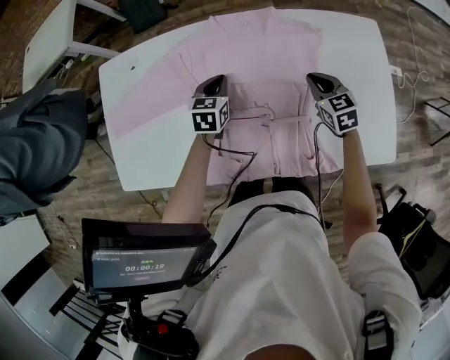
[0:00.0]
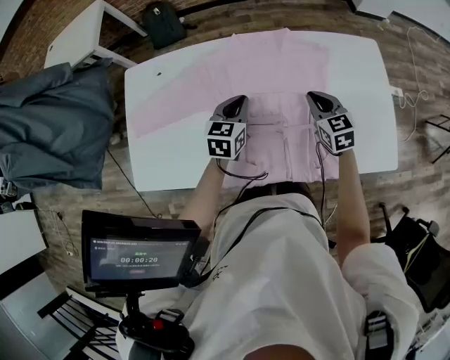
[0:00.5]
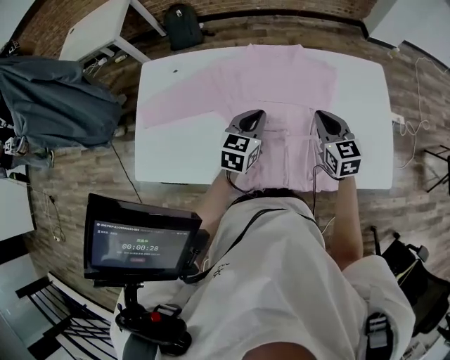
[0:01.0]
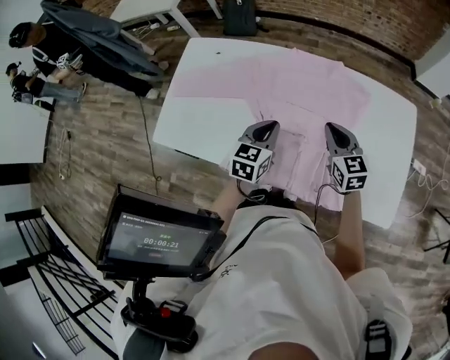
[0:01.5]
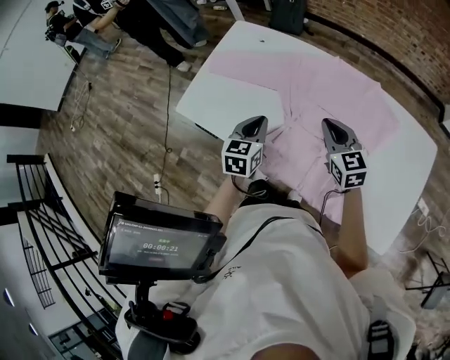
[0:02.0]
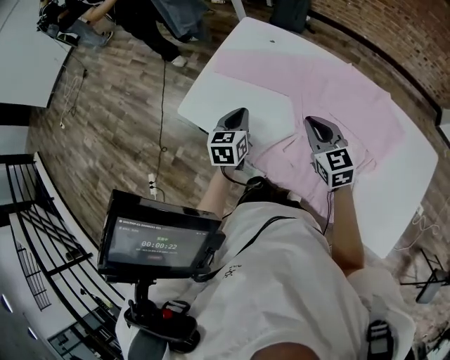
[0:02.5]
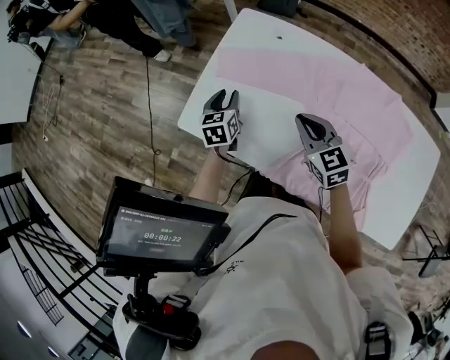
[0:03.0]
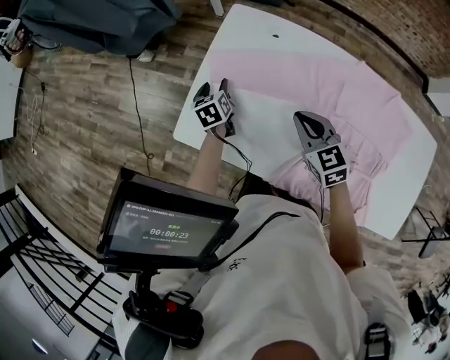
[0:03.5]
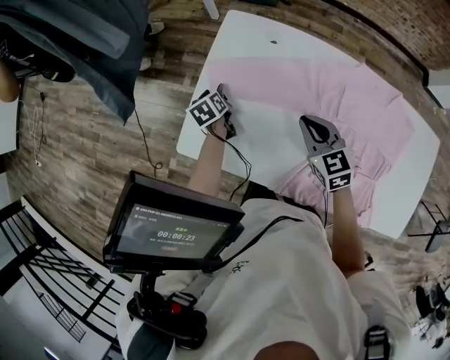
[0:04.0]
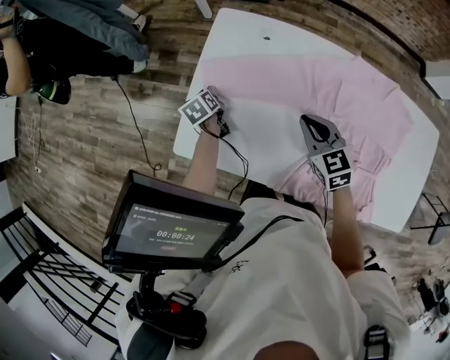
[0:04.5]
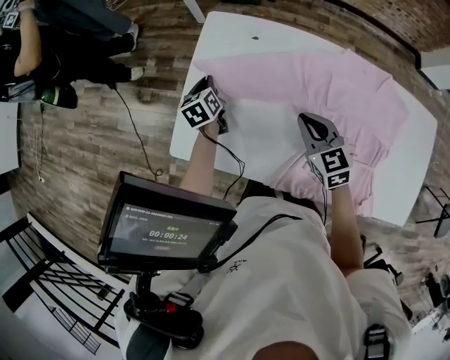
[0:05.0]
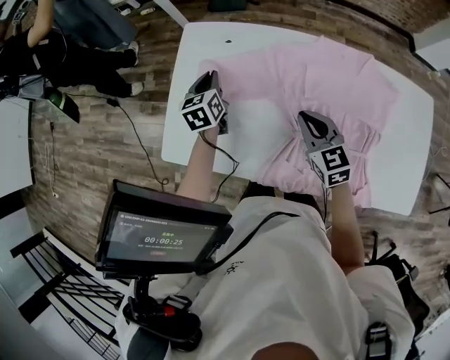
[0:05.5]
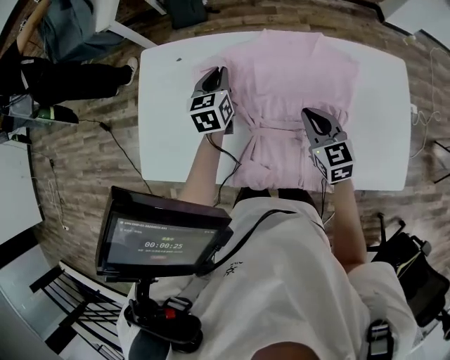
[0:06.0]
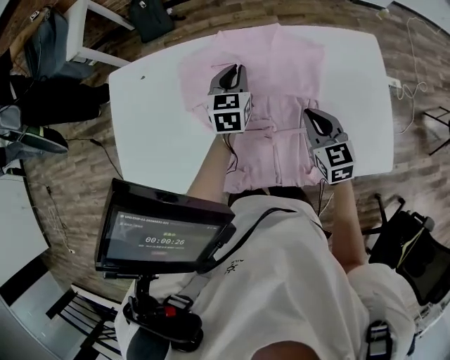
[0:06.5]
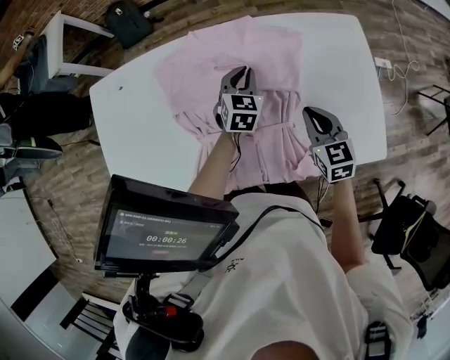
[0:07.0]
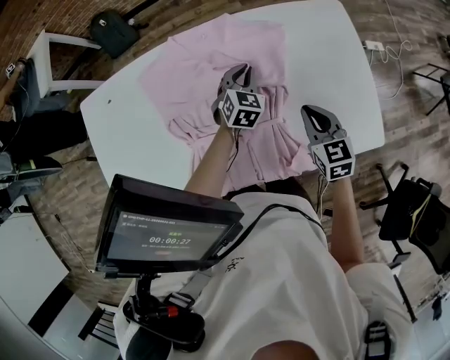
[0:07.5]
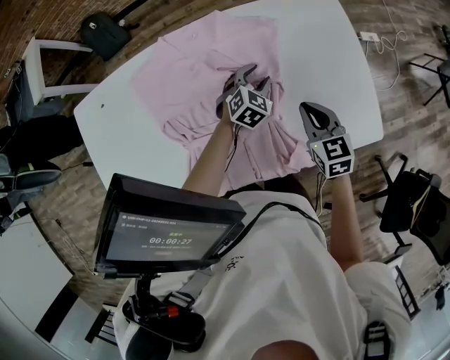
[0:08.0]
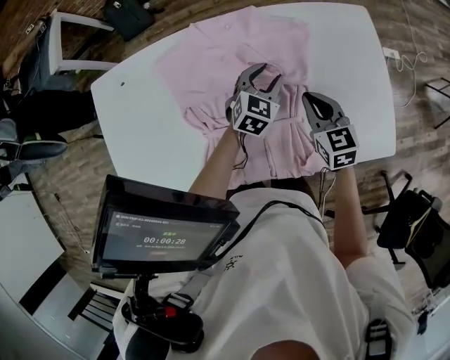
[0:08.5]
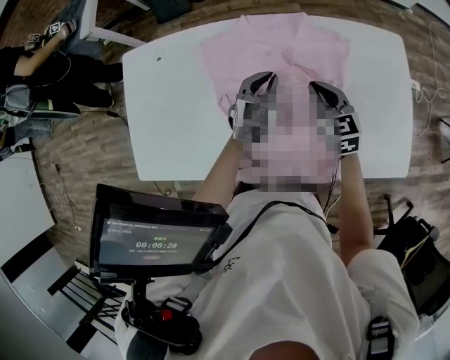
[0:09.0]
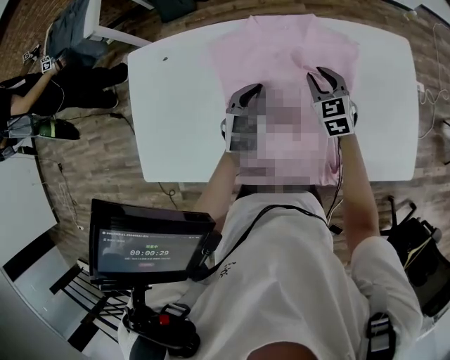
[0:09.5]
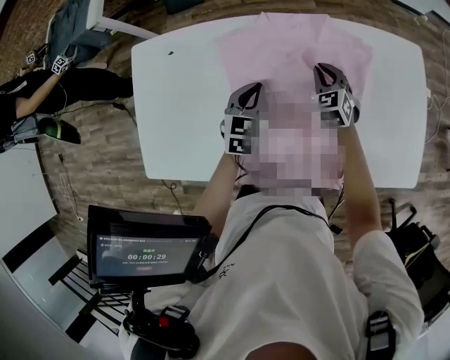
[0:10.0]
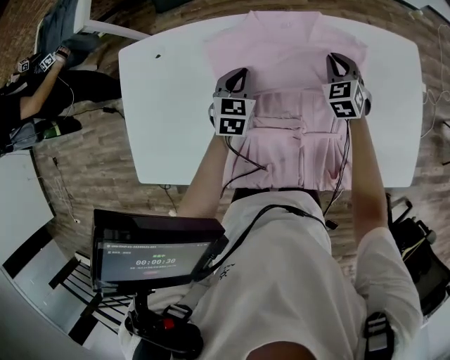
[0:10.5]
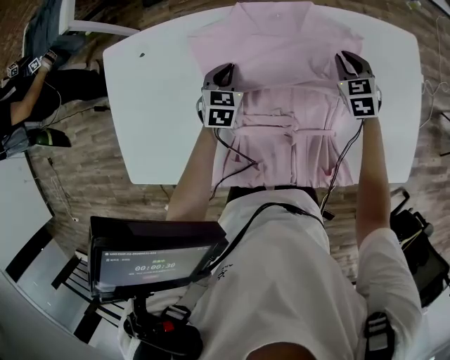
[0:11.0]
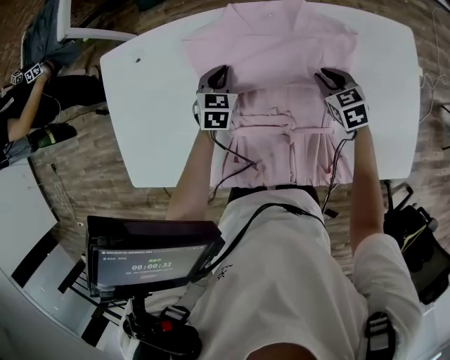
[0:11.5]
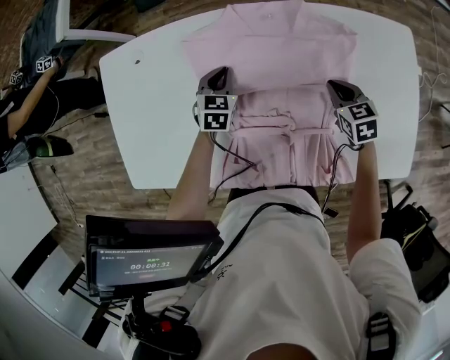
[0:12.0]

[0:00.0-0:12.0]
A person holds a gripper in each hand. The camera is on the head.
0:00.0 to 0:02.0: The right gripper shifts by roughly 25 cm, and rotates about 30 degrees, while the left gripper shifts by some 25 cm, and turns by about 30 degrees.
0:02.0 to 0:04.0: The right gripper shifts about 25 cm to the left and forward. Meanwhile the left gripper goes some 40 cm forward, to the left and downward, turns by about 40 degrees, and opens up.
0:04.0 to 0:06.0: The left gripper moves to the right and upward, about 40 cm, rotates some 50 degrees, and closes; the right gripper is displaced to the right and backward by roughly 25 cm, and turns by some 20 degrees.
0:06.0 to 0:08.0: The left gripper changes place by about 40 cm, changes its angle by roughly 60 degrees, and opens its fingers. The right gripper shifts by approximately 25 cm, and turns by approximately 20 degrees.
0:08.0 to 0:10.0: The left gripper is displaced to the left by about 30 cm, rotates approximately 40 degrees, and closes up. Meanwhile the right gripper travels to the left and forward by about 25 cm, and rotates some 30 degrees.
0:10.0 to 0:12.0: The right gripper goes approximately 15 cm to the right and backward, and turns by some 30 degrees. Meanwhile the left gripper is displaced downward by roughly 5 cm.

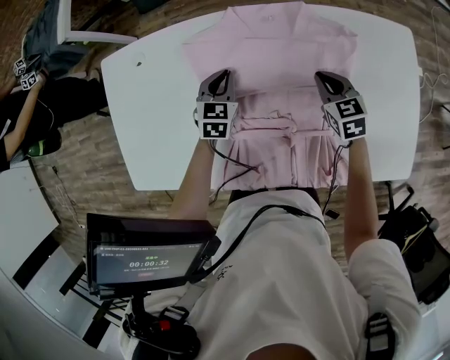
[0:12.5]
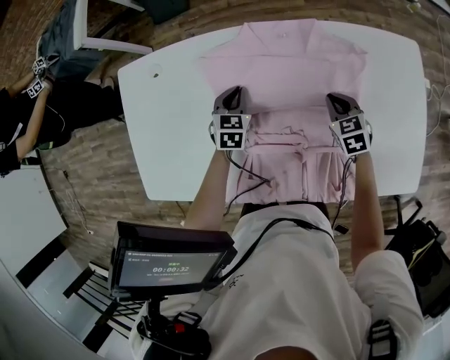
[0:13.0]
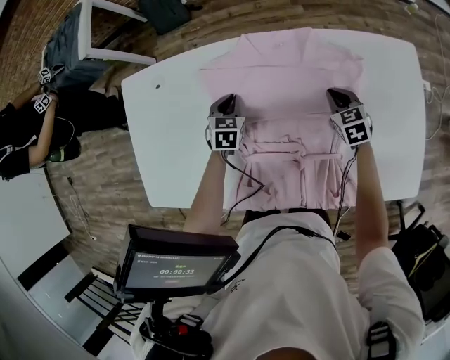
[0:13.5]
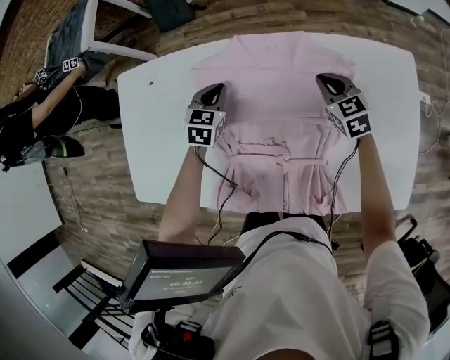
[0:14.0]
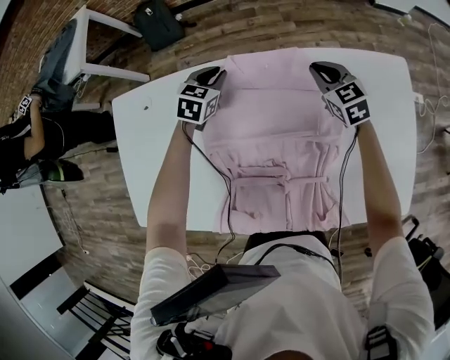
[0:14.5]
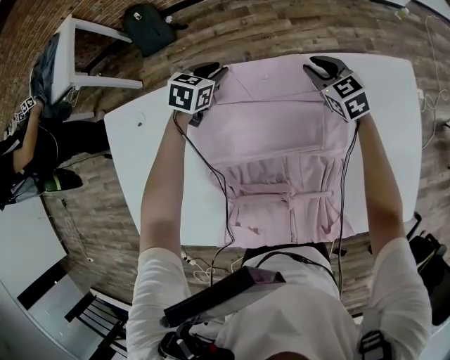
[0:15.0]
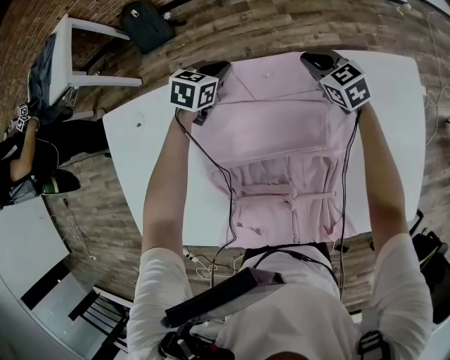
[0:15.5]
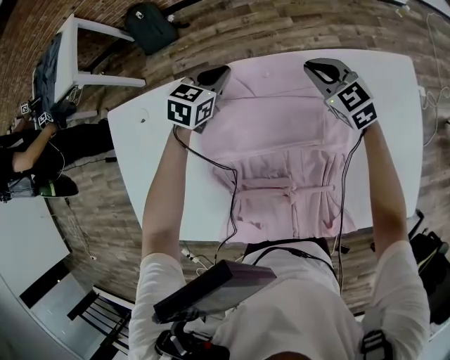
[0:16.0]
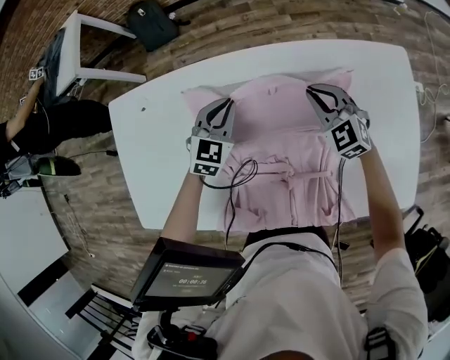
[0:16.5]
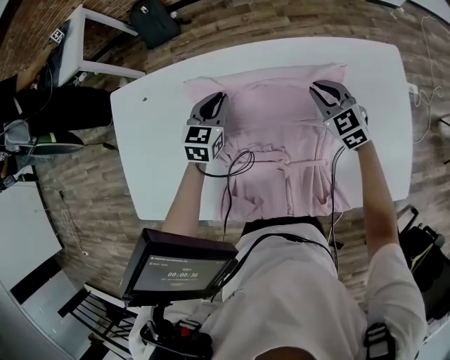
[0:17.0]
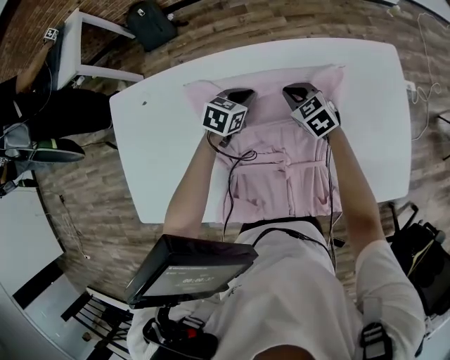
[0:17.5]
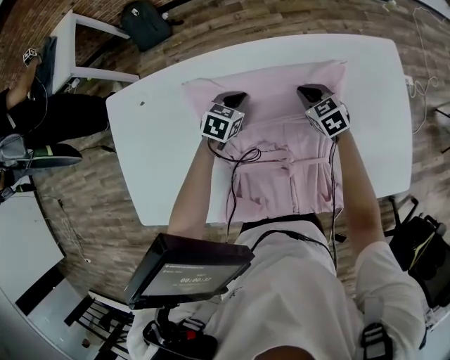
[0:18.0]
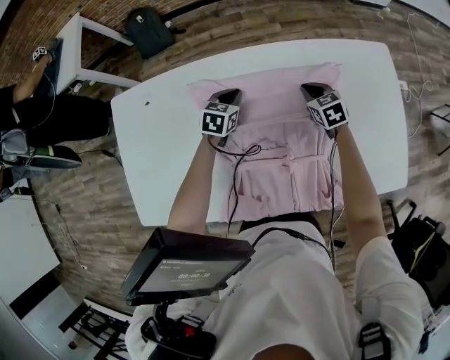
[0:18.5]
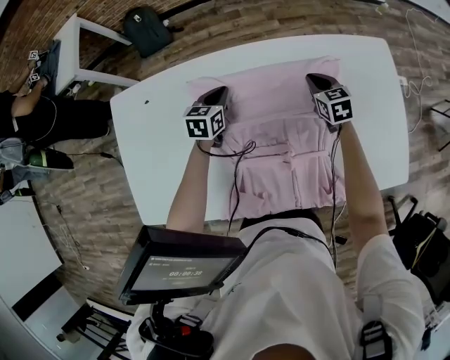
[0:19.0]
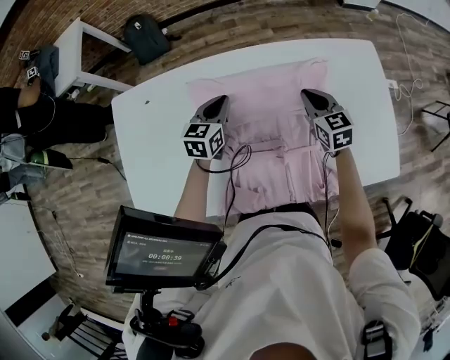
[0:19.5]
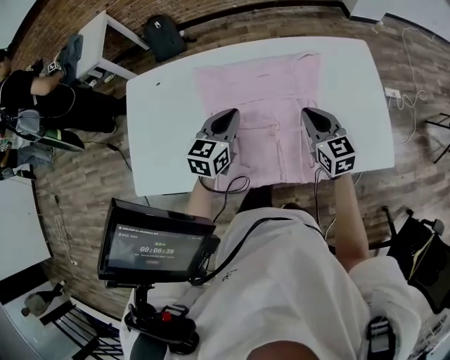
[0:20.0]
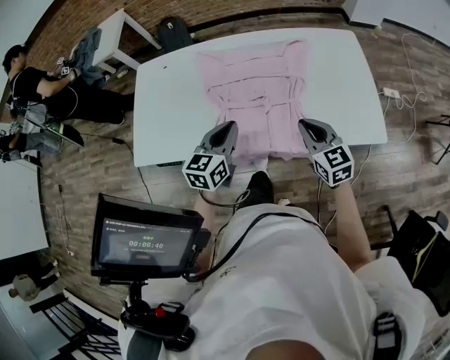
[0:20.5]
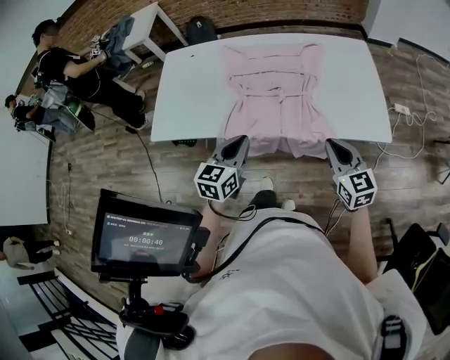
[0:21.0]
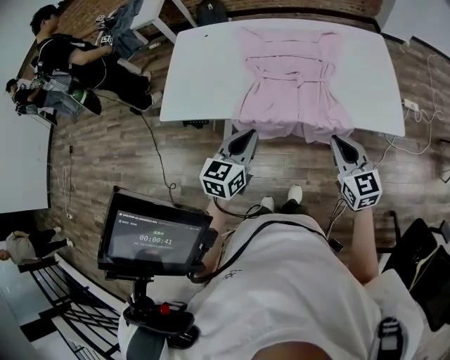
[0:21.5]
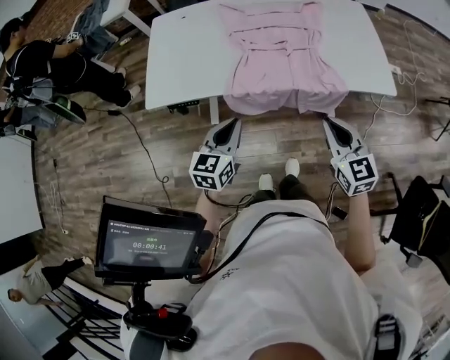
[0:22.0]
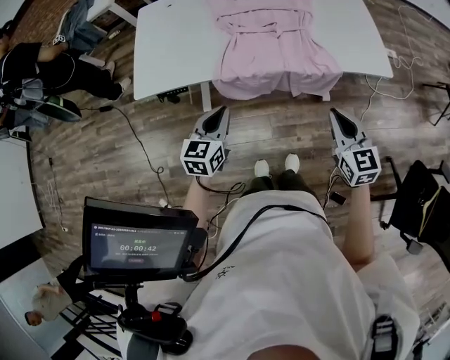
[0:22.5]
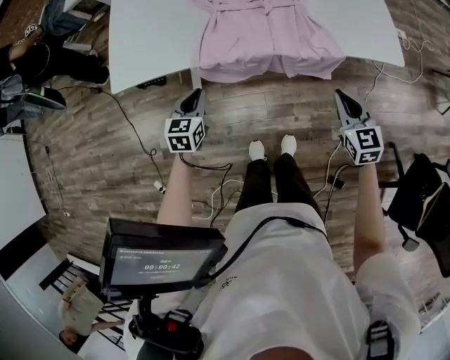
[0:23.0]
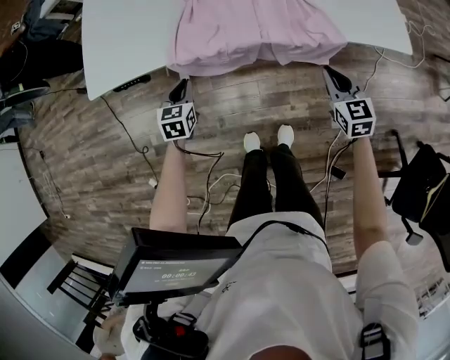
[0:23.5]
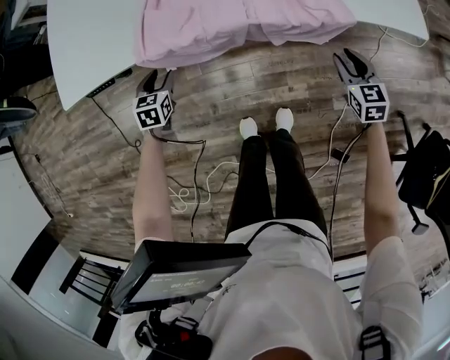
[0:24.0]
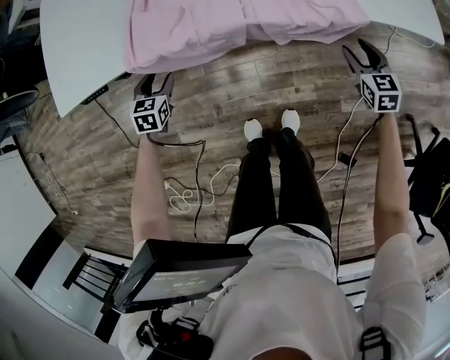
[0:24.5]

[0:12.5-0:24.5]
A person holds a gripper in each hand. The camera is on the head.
0:12.5 to 0:14.5: Both grippers travel together forward, roughly 15 cm.
0:14.5 to 0:16.5: Both grippers move backward, approximately 10 cm. The right gripper changes its angle by approximately 20 degrees.
0:16.5 to 0:18.5: The two grippers go approximately 5 cm downward. The right gripper turns by about 40 degrees. The left gripper turns by some 30 degrees.
0:18.5 to 0:20.5: Both grippers move backward and upward, about 40 cm. The right gripper swivels about 30 degrees, while the left gripper rotates roughly 30 degrees.
0:20.5 to 0:22.5: The left gripper travels backward and to the left by roughly 25 cm, while the right gripper is displaced backward by some 25 cm.
0:22.5 to 0:24.5: The left gripper goes some 35 cm downward, changes its angle by some 30 degrees, and opens up. The right gripper moves downward, to the right and forward, about 40 cm, and opens up.

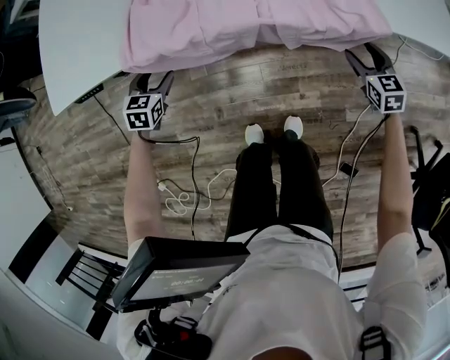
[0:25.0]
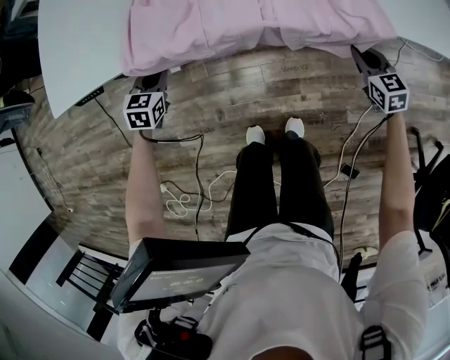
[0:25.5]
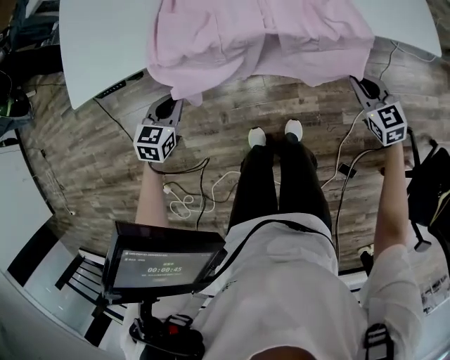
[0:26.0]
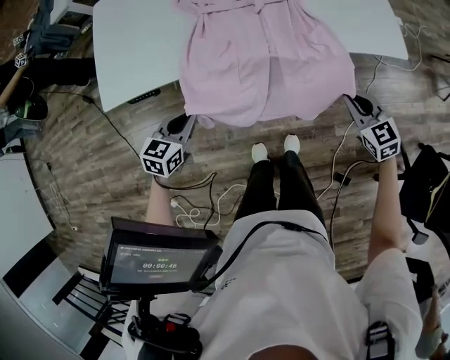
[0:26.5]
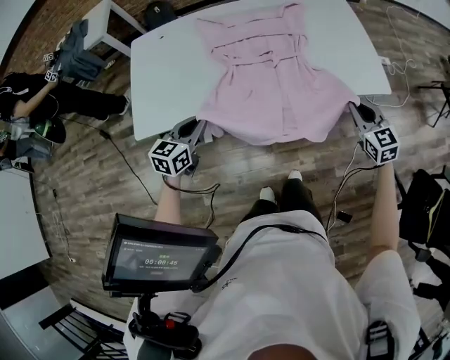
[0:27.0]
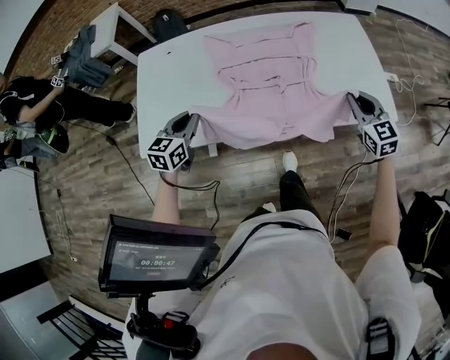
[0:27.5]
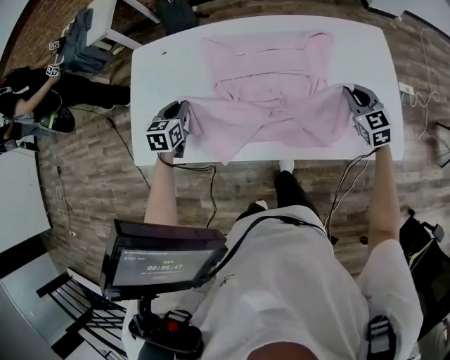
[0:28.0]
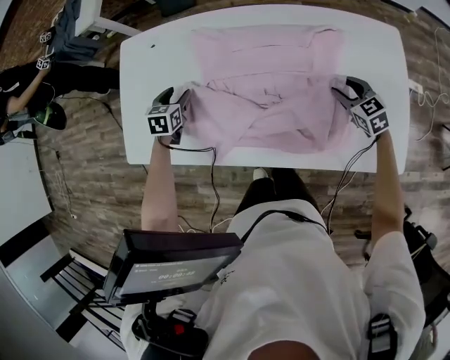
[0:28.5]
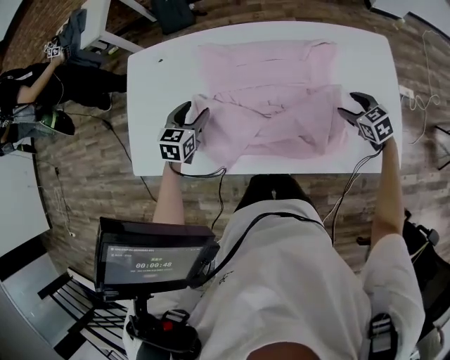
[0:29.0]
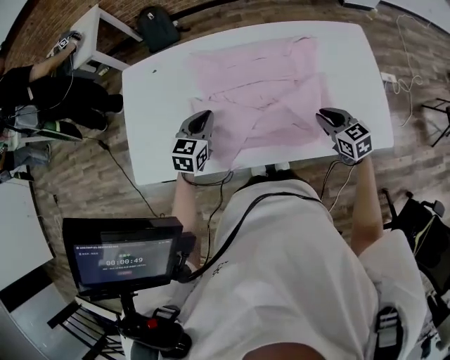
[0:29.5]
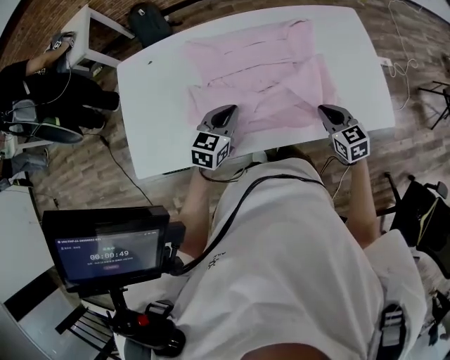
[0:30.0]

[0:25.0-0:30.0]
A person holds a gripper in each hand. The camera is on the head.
0:25.0 to 0:27.5: Both grippers travel together upward, about 40 cm. The left gripper rotates about 30 degrees, and closes its fingers. The right gripper swivels approximately 20 degrees, and closes.
0:27.5 to 0:30.0: The left gripper goes downward and returns, approximately 15 cm each way, and opens, then closes again. Meanwhile the right gripper moves downward, some 10 cm, and opens, then closes again.
